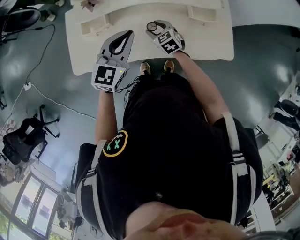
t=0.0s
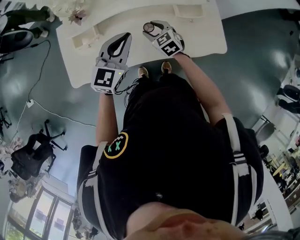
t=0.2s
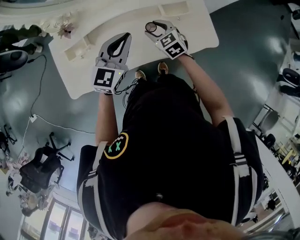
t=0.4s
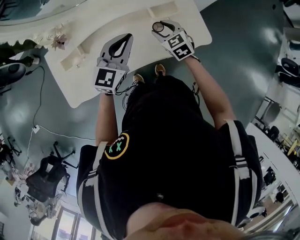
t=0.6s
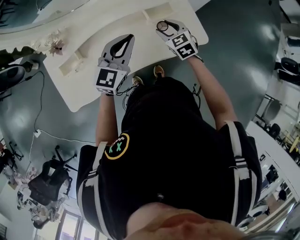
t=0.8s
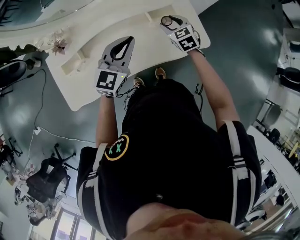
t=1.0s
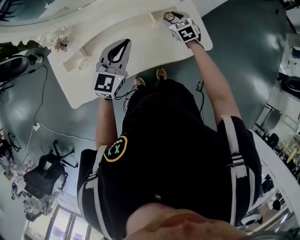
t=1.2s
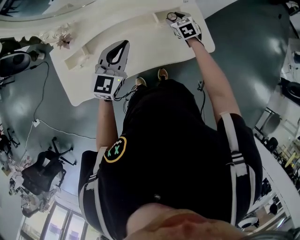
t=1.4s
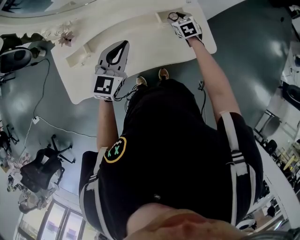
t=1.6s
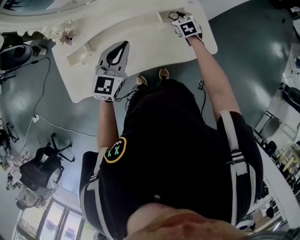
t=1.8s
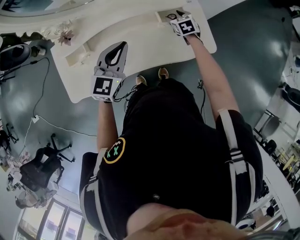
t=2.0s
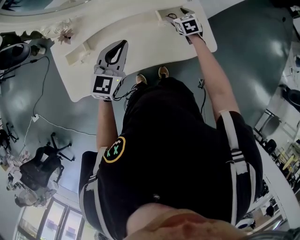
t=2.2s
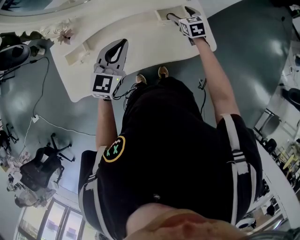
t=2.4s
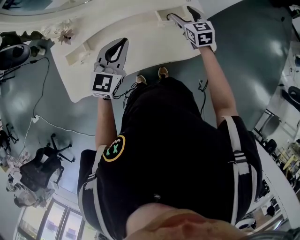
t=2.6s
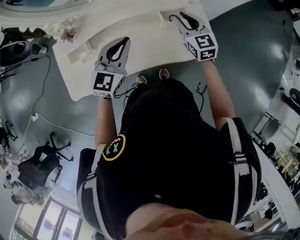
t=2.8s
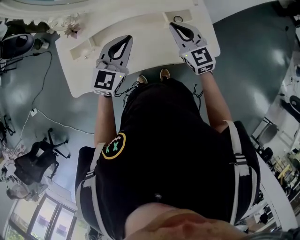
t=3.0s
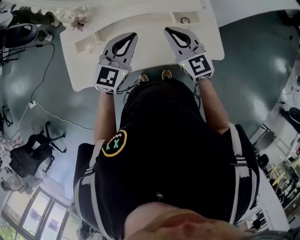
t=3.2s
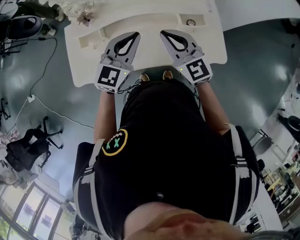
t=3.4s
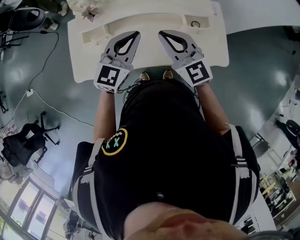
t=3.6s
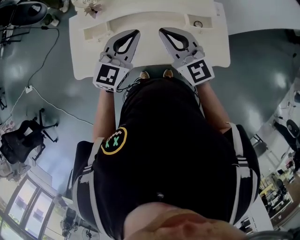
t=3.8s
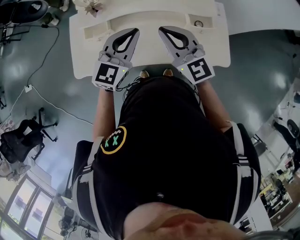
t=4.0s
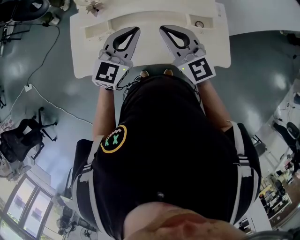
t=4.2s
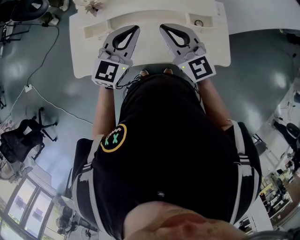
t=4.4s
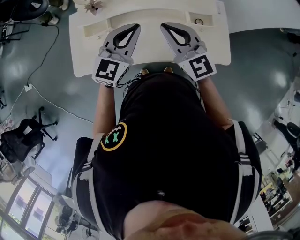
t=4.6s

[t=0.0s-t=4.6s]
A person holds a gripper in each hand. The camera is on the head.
t=0.0s to t=1.6s: The right gripper heads to the right and forward, covering approximately 30 cm, and rotates roughly 30 degrees, while the left gripper heads to the right, covering some 10 cm.
t=1.6s to t=3.0s: The right gripper travels upward and backward by roughly 25 cm, tilts its fingers some 30 degrees upward, and closes its fingers.
t=3.0s to t=4.6s: The right gripper shifts approximately 15 cm to the left and upward, and swivels about 20 degrees. Meanwhile the left gripper heads to the left, covering roughly 5 cm.

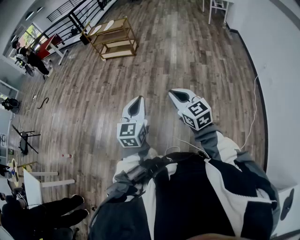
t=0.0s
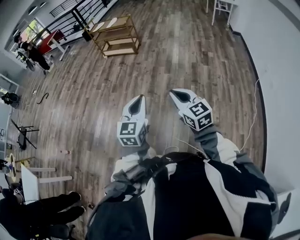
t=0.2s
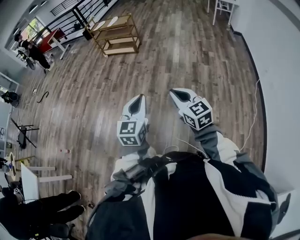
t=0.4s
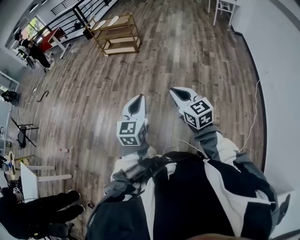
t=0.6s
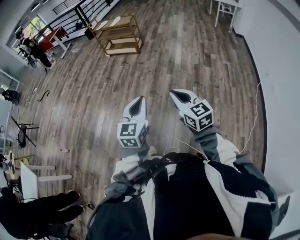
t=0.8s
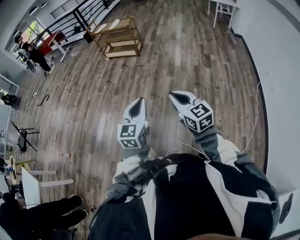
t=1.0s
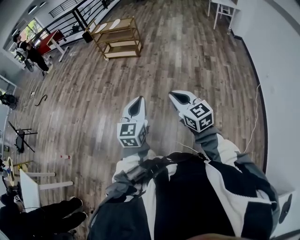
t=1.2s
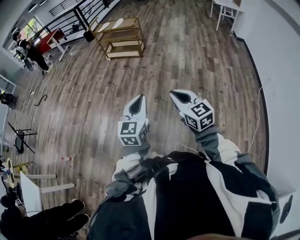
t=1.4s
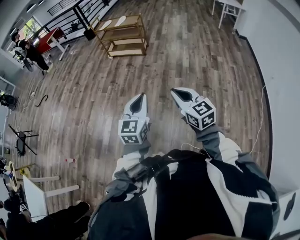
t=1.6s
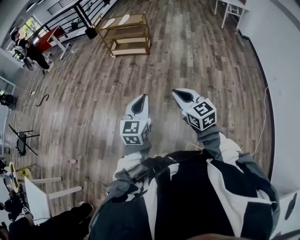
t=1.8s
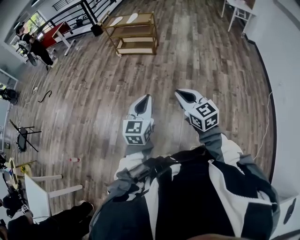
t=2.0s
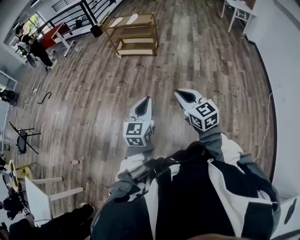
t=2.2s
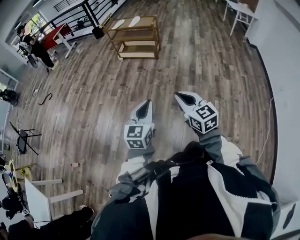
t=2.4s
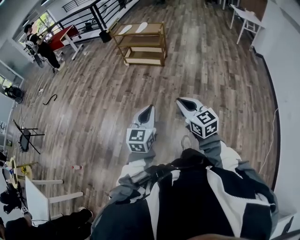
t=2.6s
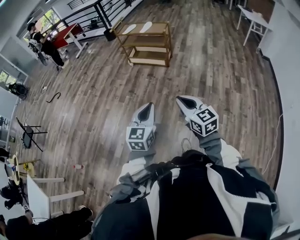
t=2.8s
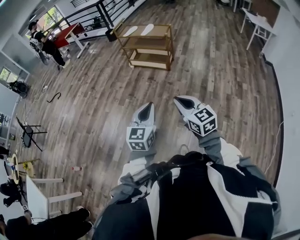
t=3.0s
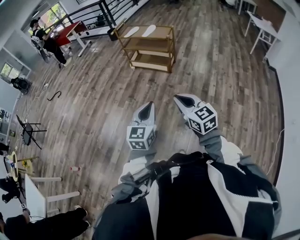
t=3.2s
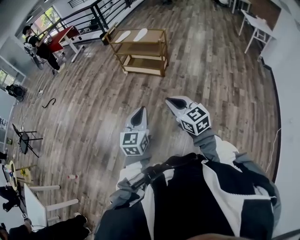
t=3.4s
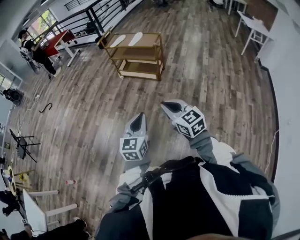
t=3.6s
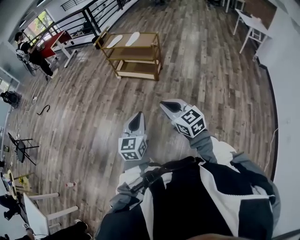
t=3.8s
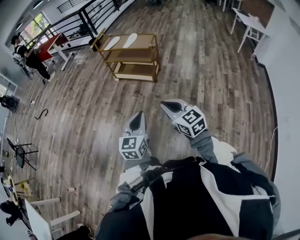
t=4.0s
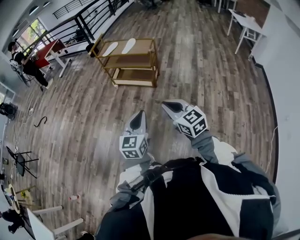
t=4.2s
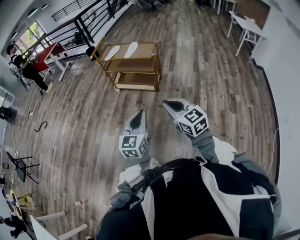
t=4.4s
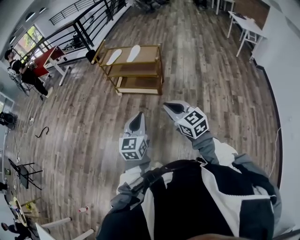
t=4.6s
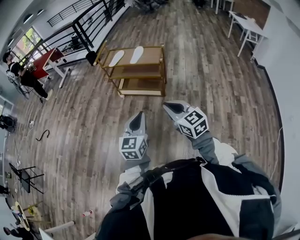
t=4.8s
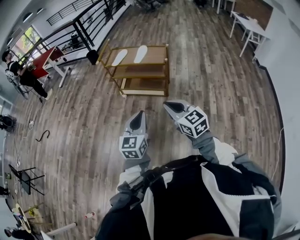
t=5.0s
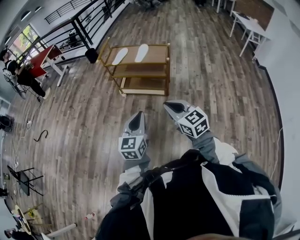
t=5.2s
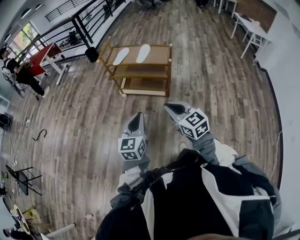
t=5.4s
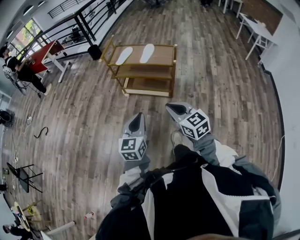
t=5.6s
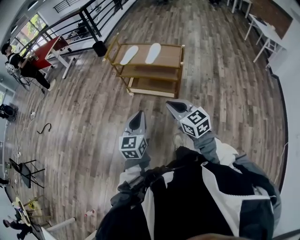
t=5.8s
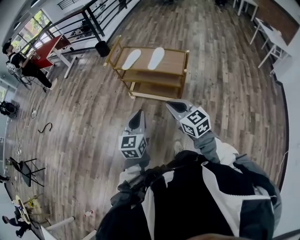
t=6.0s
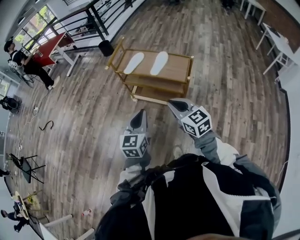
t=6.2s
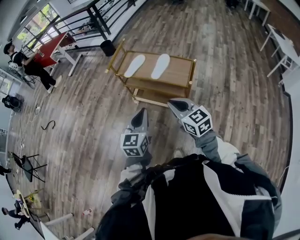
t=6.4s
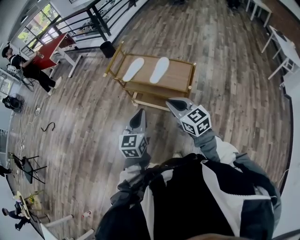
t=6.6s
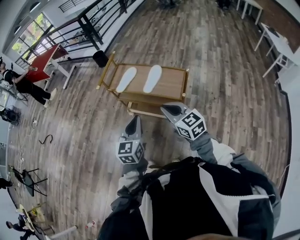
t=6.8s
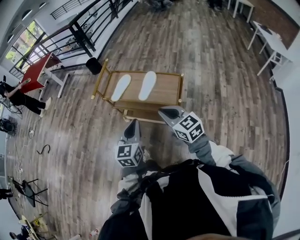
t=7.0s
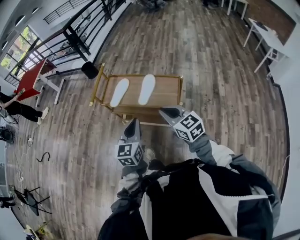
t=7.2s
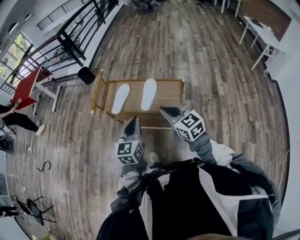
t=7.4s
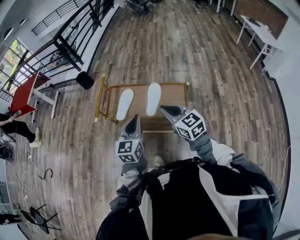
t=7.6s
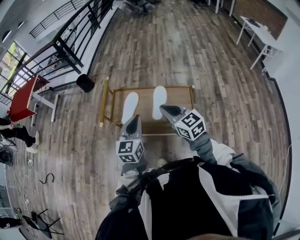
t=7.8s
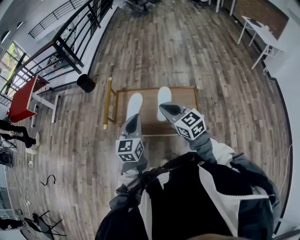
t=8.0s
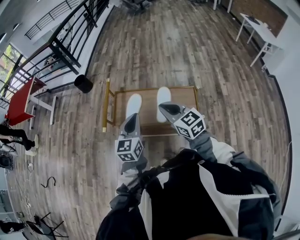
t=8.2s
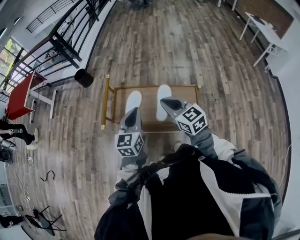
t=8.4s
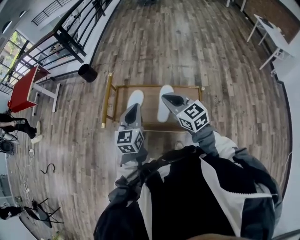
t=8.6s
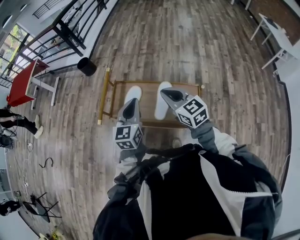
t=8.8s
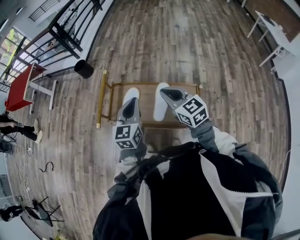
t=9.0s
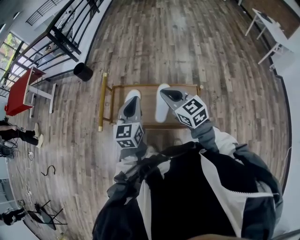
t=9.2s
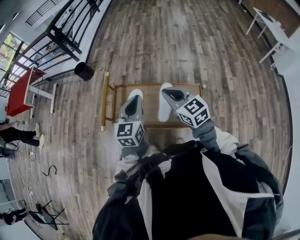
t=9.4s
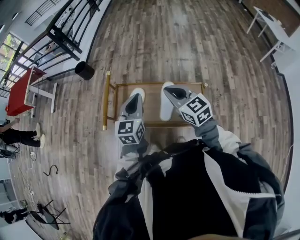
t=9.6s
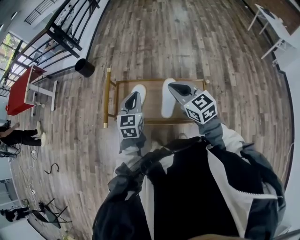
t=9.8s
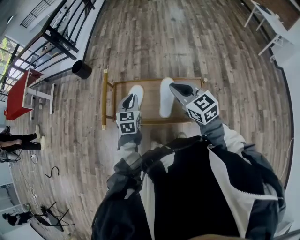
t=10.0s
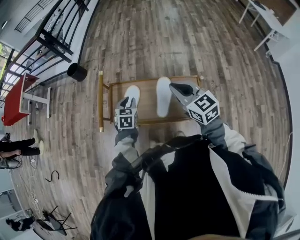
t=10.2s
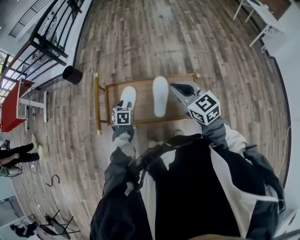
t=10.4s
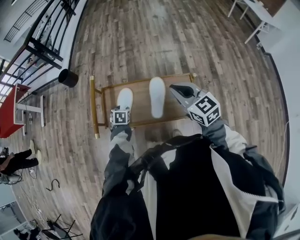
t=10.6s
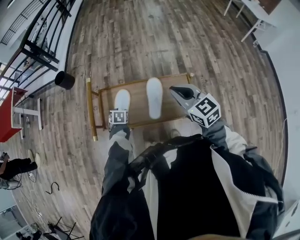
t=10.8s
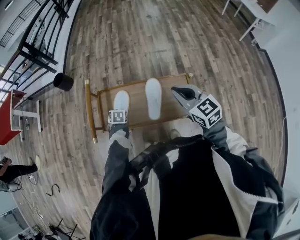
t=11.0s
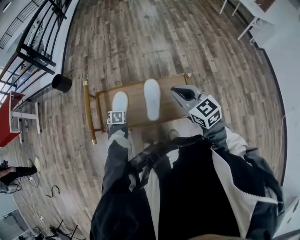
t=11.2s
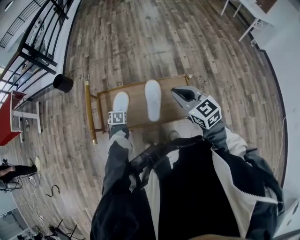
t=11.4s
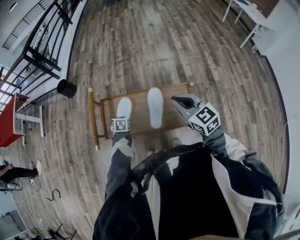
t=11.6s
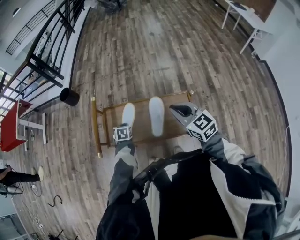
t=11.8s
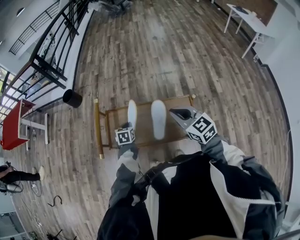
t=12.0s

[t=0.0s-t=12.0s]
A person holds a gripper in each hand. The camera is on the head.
t=0.0s to t=1.6s: The two grippers go some 20 cm to the left and forward.
t=1.6s to t=3.0s: Both grippers travel together forward, roughly 25 cm.
t=3.0s to t=4.4s: The grippers both shift forward by roughly 25 cm.
t=4.4s to t=6.0s: Both grippers travel together forward, approximately 35 cm.
t=6.0s to t=7.6s: Both grippers travel together forward, approximately 35 cm.
t=7.6s to t=9.0s: The two grippers go approximately 15 cm forward.
t=9.0s to t=10.4s: The left gripper heads downward, covering roughly 25 cm, points its fingers about 40 degrees further downward, and opens.
t=10.4s to t=12.0s: The left gripper reaches roughly 10 cm downward, then returns, and closes its fingers.

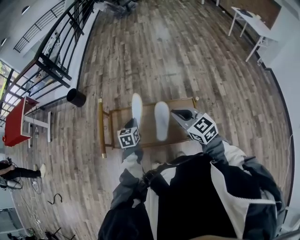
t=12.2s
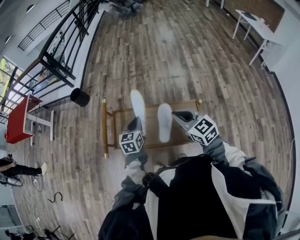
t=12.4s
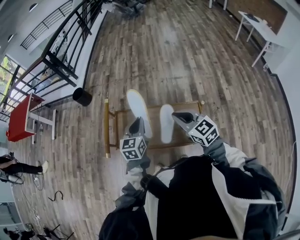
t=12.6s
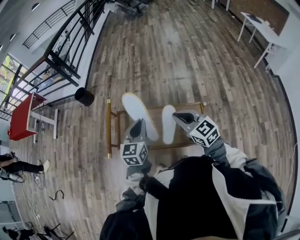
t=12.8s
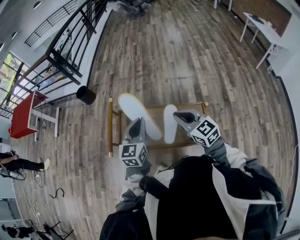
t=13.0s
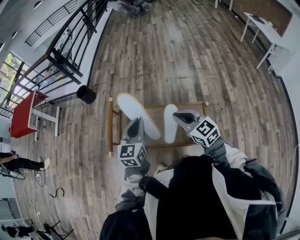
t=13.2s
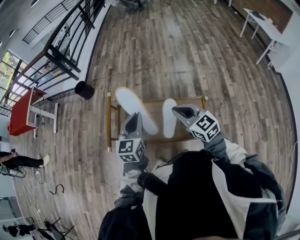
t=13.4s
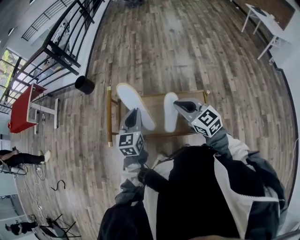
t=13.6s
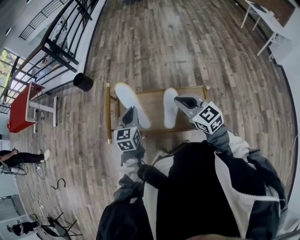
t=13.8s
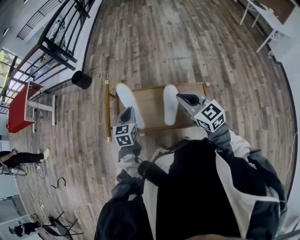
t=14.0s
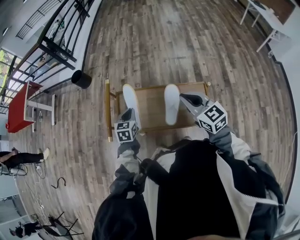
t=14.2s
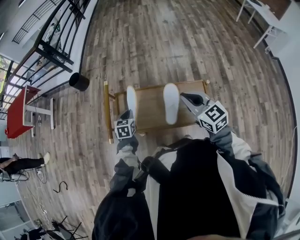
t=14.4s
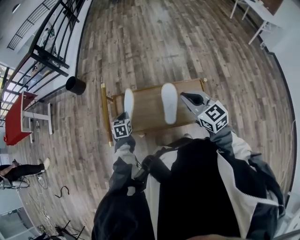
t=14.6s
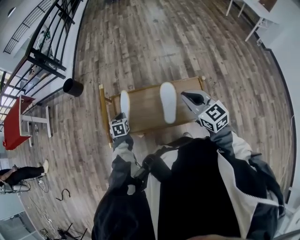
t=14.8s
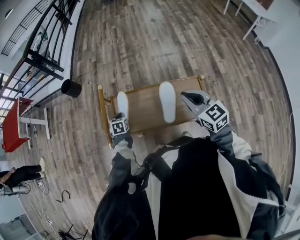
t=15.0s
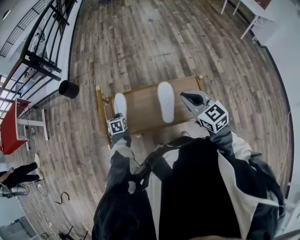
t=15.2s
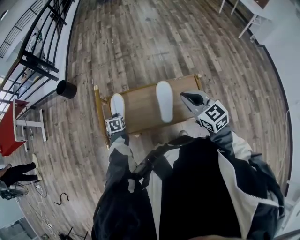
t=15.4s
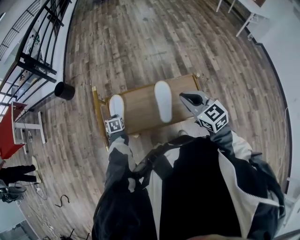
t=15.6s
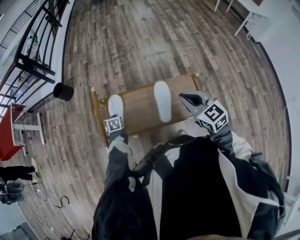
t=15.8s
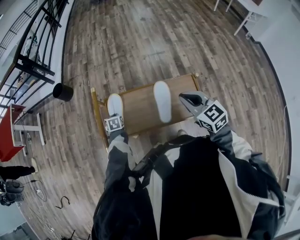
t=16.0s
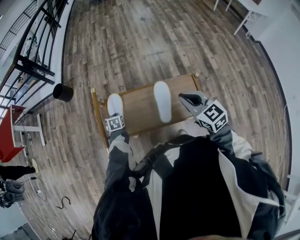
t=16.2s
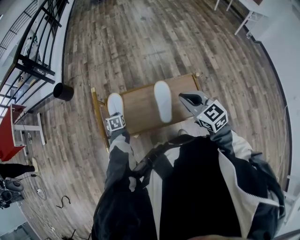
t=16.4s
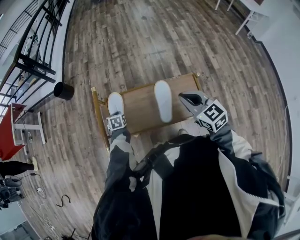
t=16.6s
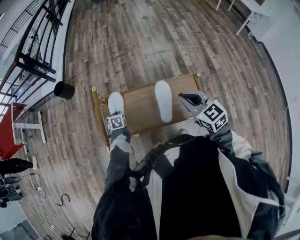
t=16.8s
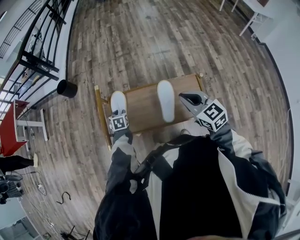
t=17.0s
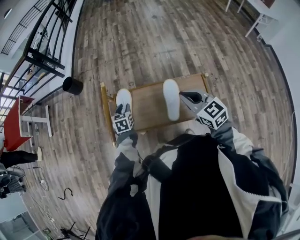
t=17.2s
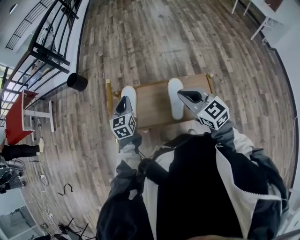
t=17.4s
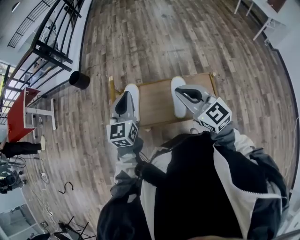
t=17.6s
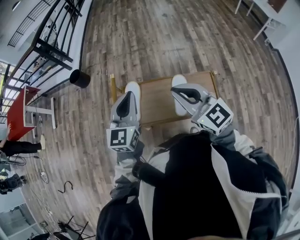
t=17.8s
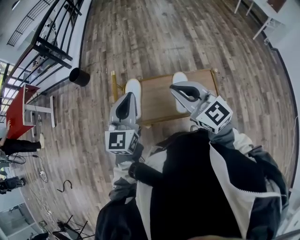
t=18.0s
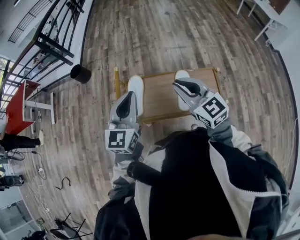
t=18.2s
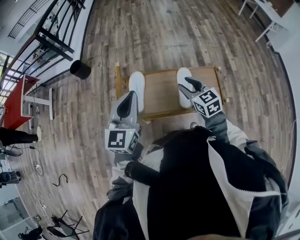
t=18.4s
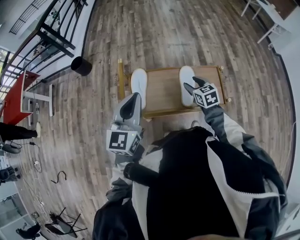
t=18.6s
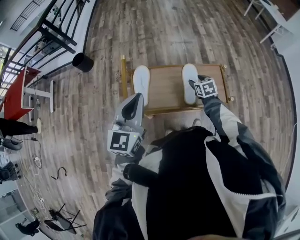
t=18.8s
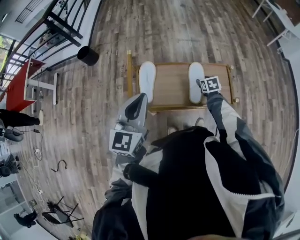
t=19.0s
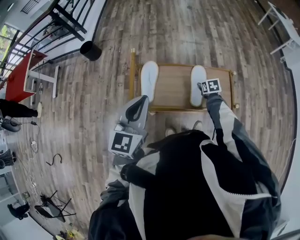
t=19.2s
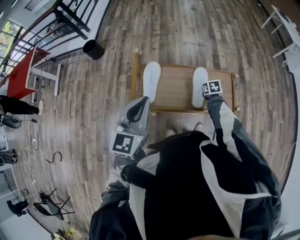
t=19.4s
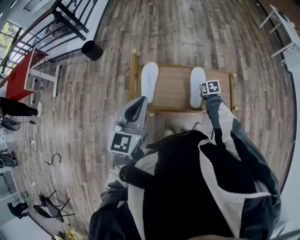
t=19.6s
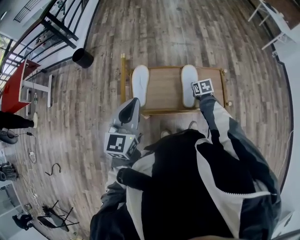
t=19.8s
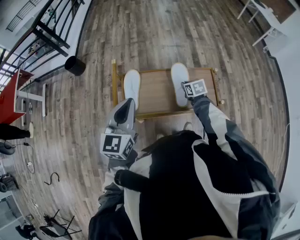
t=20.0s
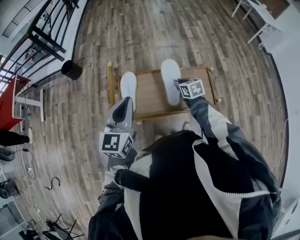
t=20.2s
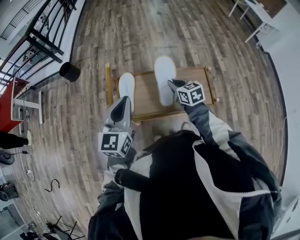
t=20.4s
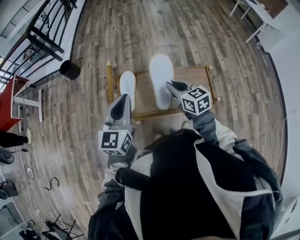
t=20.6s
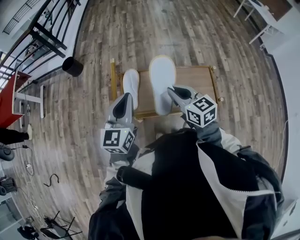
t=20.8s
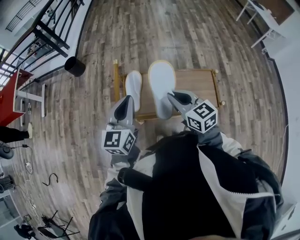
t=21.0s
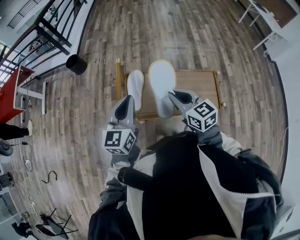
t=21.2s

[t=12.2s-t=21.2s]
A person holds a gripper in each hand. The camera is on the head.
t=12.2s to t=13.8s: The left gripper heads upward, covering approximately 10 cm.
t=13.8s to t=15.2s: The left gripper goes approximately 25 cm downward and to the left, and tilts its fingers some 30 degrees downward.
t=15.2s to t=16.6s: The grippers move only a little.
t=16.6s to t=18.2s: The left gripper goes about 40 cm upward, points its fingers roughly 50 degrees further upward, and opens and closes again, while the right gripper travels to the left and upward by approximately 15 cm.
t=18.2s to t=19.8s: The right gripper moves downward, some 35 cm, tips its fingers downward by some 50 degrees, and opens and closes again, while the left gripper shifts by some 5 cm.
t=19.8s to t=21.2s: The right gripper is displaced upward and to the left by approximately 30 cm, and points its fingers approximately 40 degrees further upward.
